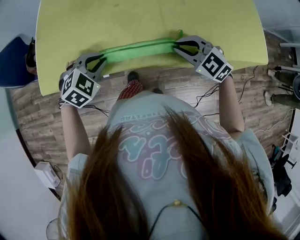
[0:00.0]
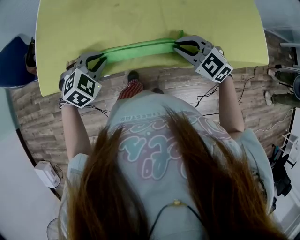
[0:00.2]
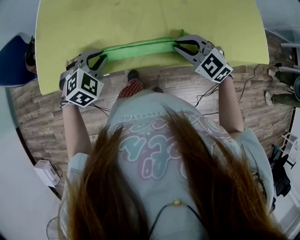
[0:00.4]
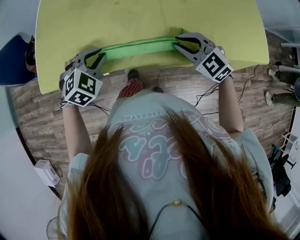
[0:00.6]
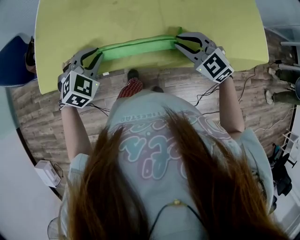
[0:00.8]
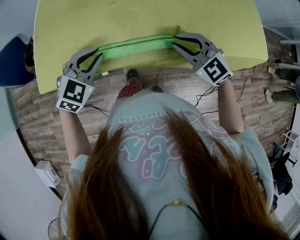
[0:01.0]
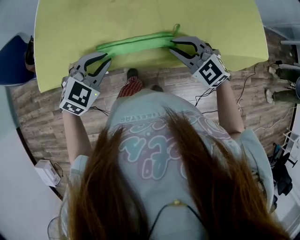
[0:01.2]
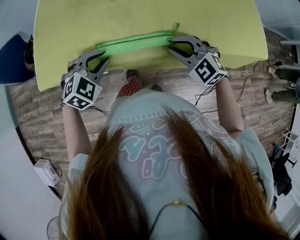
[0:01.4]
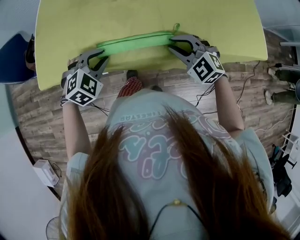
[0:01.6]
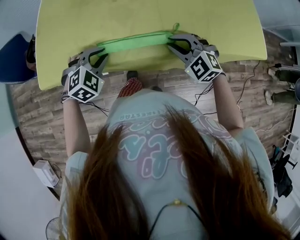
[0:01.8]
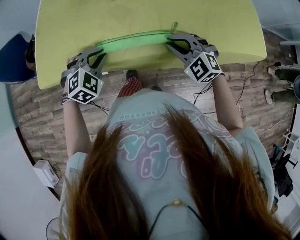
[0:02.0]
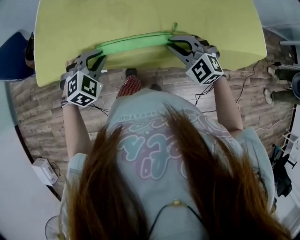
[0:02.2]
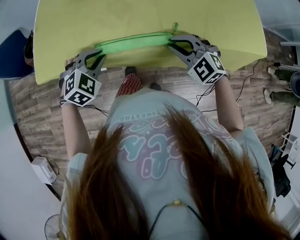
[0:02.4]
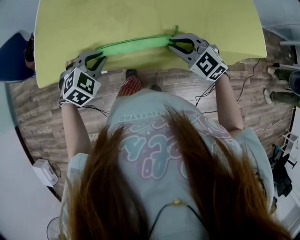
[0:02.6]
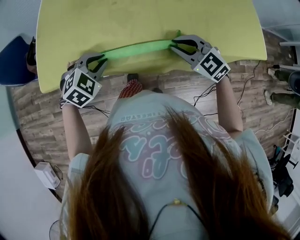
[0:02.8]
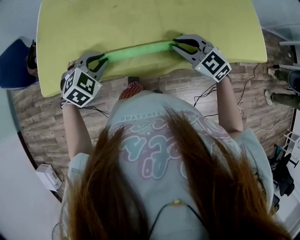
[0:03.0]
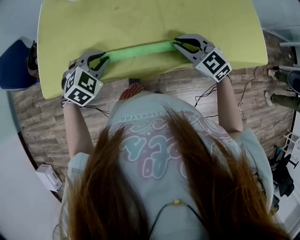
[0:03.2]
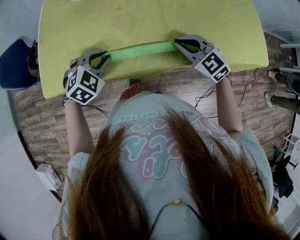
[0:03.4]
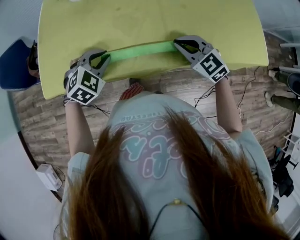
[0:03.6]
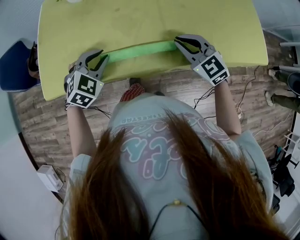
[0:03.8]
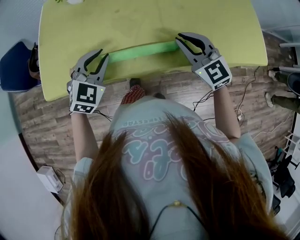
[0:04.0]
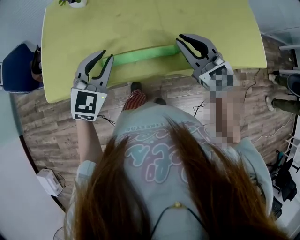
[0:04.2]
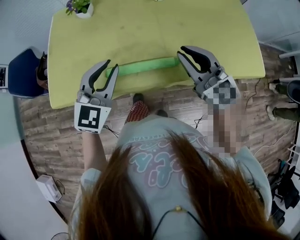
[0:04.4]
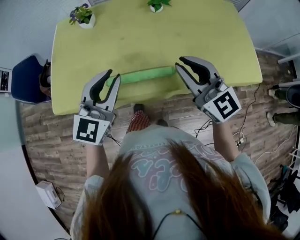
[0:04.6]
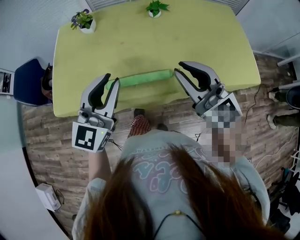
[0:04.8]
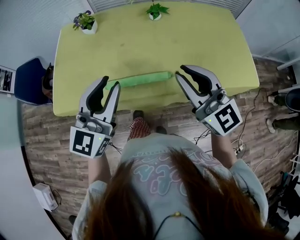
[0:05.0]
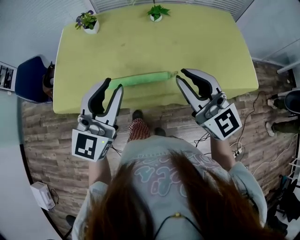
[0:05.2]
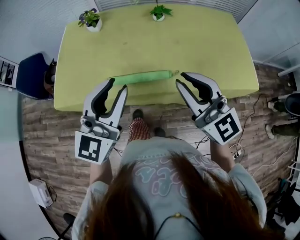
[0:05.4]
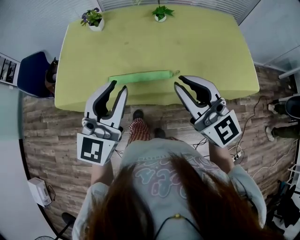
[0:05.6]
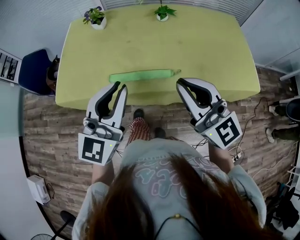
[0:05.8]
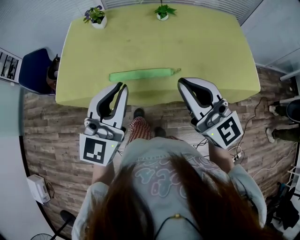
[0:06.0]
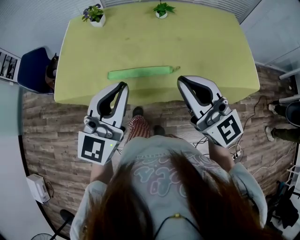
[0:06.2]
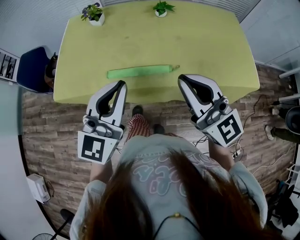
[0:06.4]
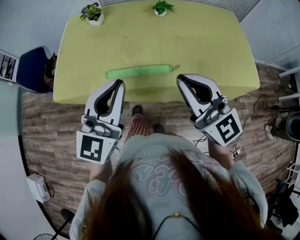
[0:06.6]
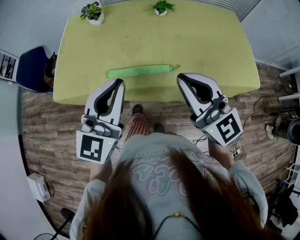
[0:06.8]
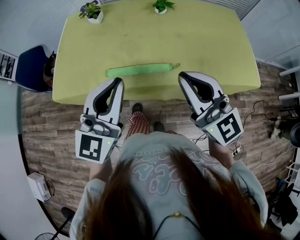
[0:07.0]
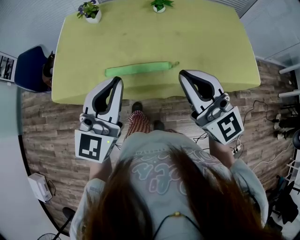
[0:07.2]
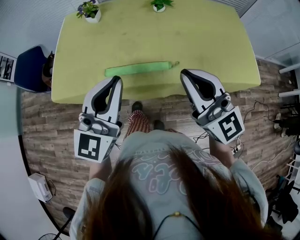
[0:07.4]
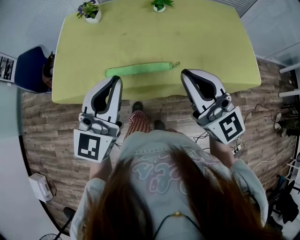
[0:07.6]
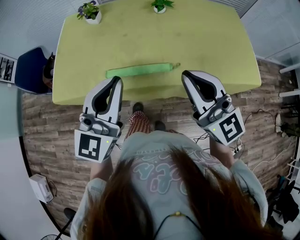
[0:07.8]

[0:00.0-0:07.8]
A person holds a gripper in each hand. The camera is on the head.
0:00.0 to 0:03.2: The grippers move only a little.
0:03.2 to 0:04.6: Both grippers travel together upward, approximately 20 cm. The right gripper changes its angle by some 30 degrees. Meanwhile the left gripper tilts its fingers some 50 degrees upward.
0:04.6 to 0:06.2: Both grippers move backward and upward, roughly 10 cm.
0:06.2 to 0:07.8: The grippers move only a little.

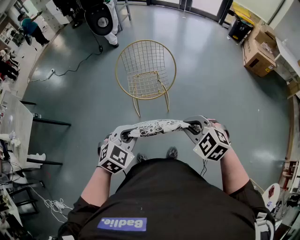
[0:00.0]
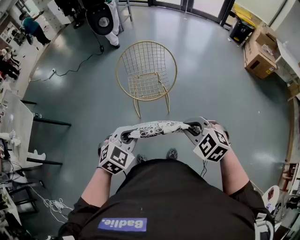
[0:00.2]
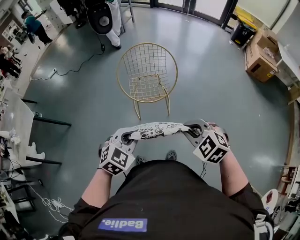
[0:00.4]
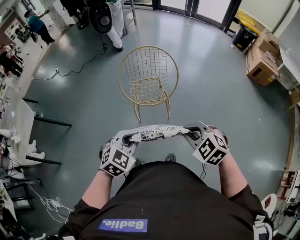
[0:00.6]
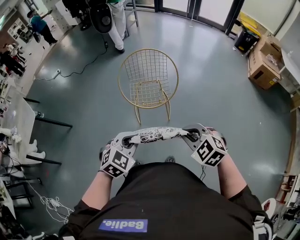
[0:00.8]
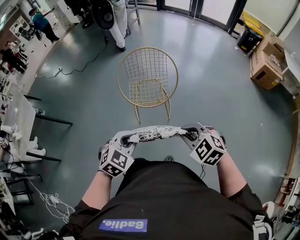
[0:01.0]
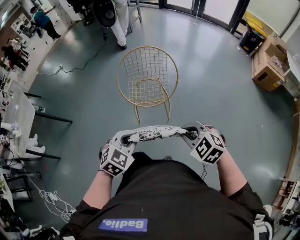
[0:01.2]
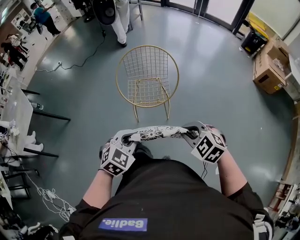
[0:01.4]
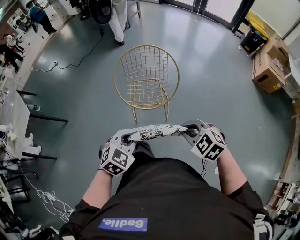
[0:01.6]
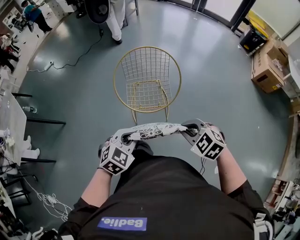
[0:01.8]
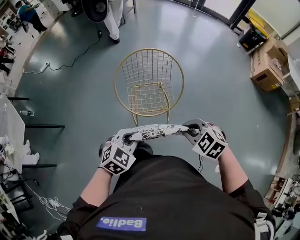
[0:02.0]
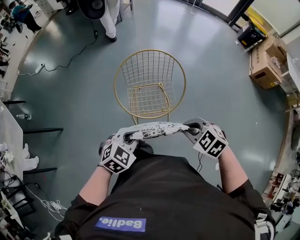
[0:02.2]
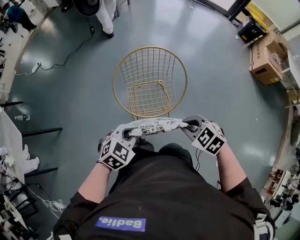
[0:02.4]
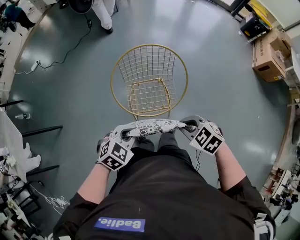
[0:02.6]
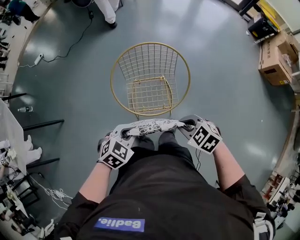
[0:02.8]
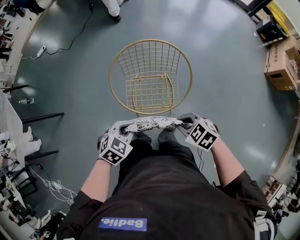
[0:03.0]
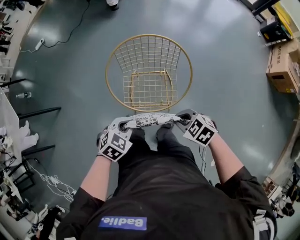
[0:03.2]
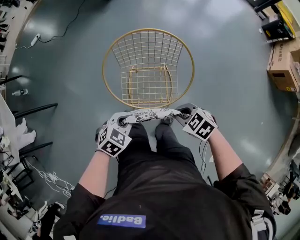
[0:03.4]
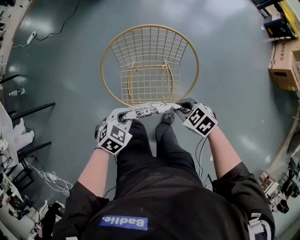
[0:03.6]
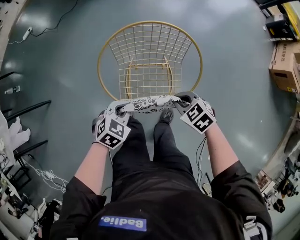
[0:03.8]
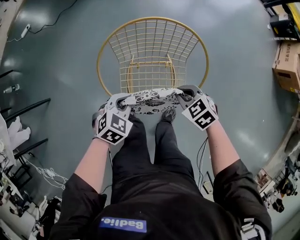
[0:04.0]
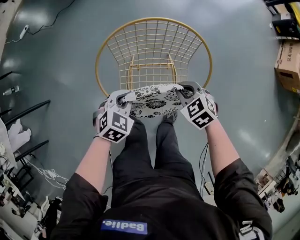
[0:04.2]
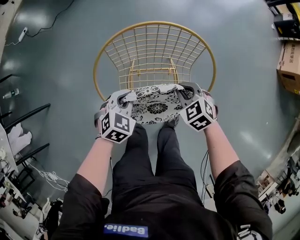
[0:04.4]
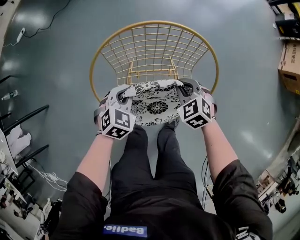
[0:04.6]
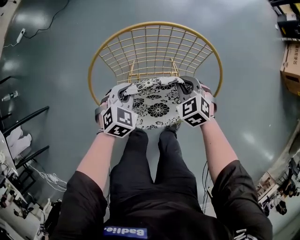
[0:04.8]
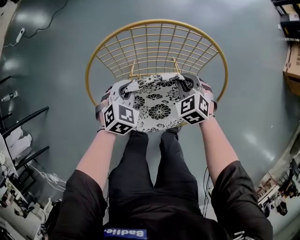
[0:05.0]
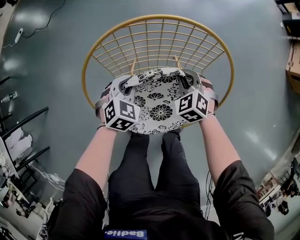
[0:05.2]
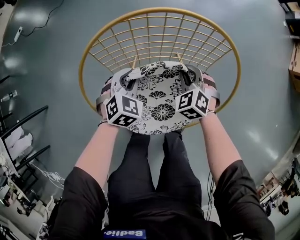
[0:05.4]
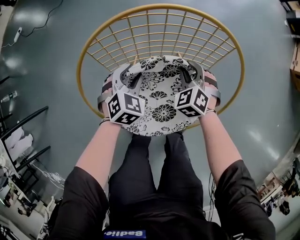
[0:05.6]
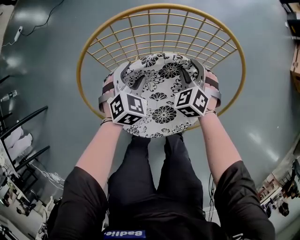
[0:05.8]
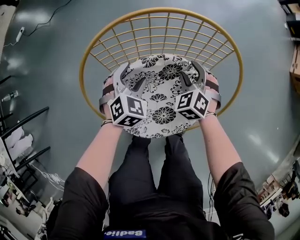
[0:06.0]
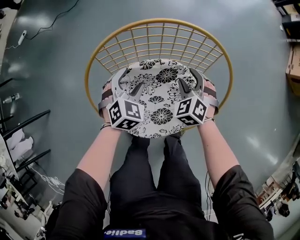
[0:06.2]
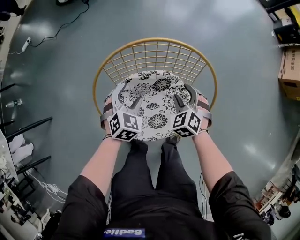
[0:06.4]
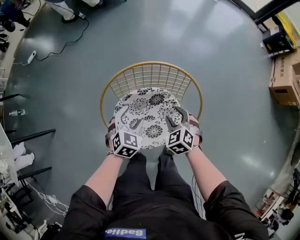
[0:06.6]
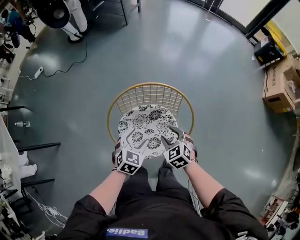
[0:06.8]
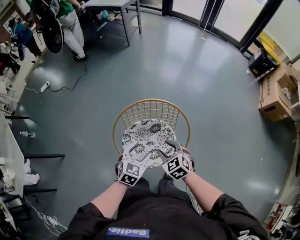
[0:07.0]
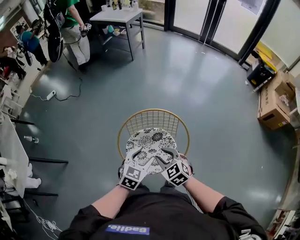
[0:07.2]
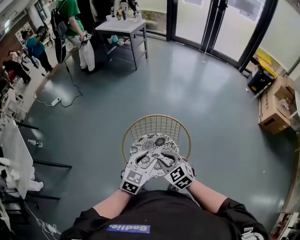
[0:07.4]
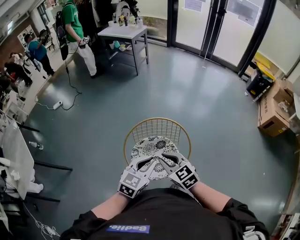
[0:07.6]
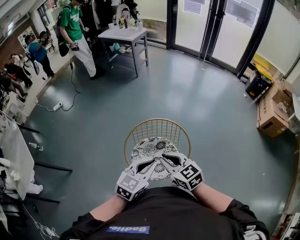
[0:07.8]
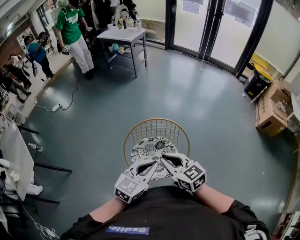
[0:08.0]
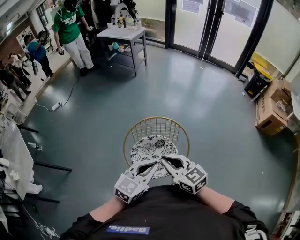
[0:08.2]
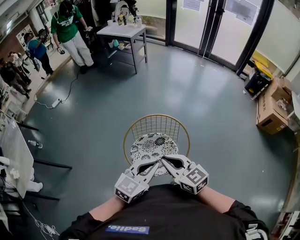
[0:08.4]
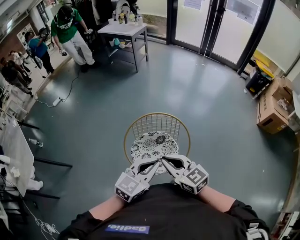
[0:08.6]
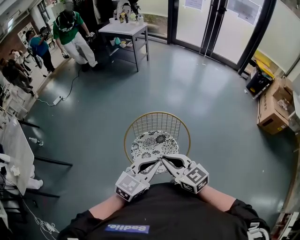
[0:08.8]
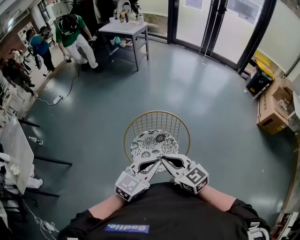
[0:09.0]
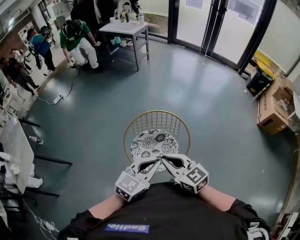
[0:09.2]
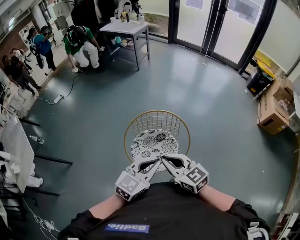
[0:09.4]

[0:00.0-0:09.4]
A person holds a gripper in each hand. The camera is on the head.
0:00.0 to 0:01.6: The right gripper travels forward, downward and to the right by about 15 cm, while the left gripper shifts some 10 cm forward and to the right.
0:01.6 to 0:03.2: The right gripper shifts by roughly 30 cm, and turns by approximately 20 degrees. Meanwhile the left gripper moves approximately 25 cm.
0:03.2 to 0:04.8: The right gripper shifts by roughly 35 cm, and changes its angle by some 30 degrees. The left gripper changes place by approximately 30 cm.
0:04.8 to 0:06.2: The left gripper is displaced forward by about 5 cm, and opens its fingers, while the right gripper heads downward, covering about 5 cm, and opens.
0:06.2 to 0:07.8: Both grippers travel together upward and backward, about 50 cm. The left gripper turns by about 40 degrees, and closes; the right gripper swivels some 50 degrees, and closes.
0:07.8 to 0:09.4: The left gripper shifts by about 5 cm. The right gripper travels backward by about 5 cm.

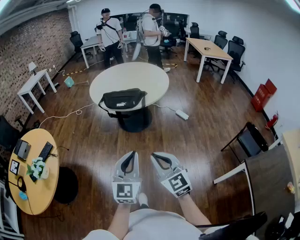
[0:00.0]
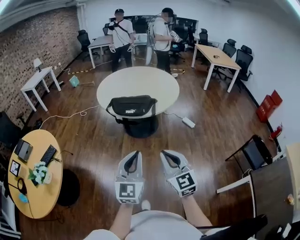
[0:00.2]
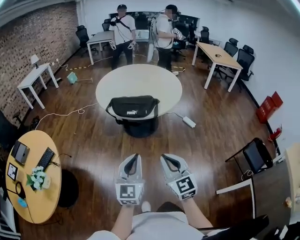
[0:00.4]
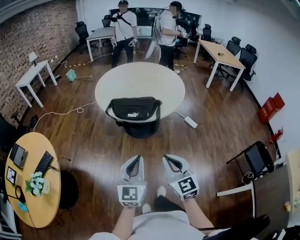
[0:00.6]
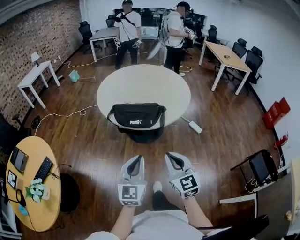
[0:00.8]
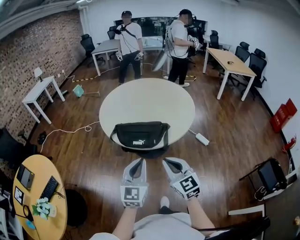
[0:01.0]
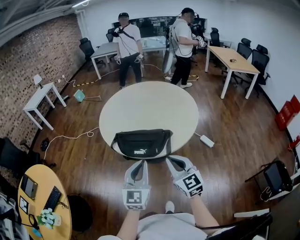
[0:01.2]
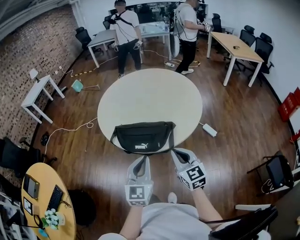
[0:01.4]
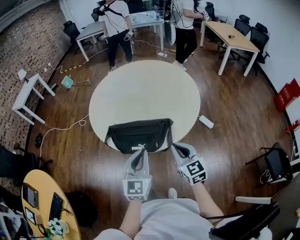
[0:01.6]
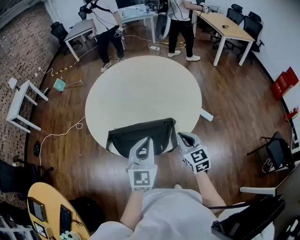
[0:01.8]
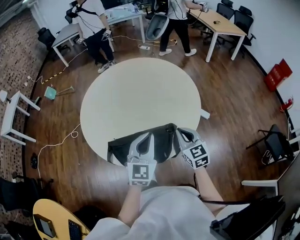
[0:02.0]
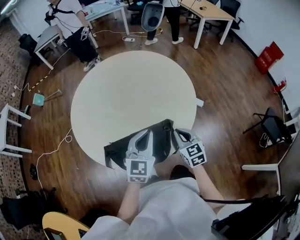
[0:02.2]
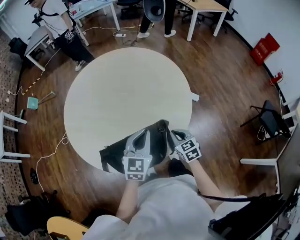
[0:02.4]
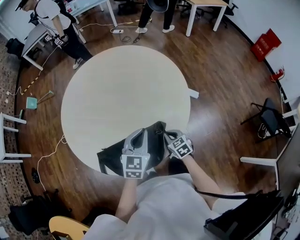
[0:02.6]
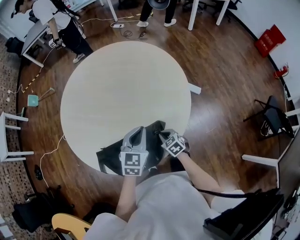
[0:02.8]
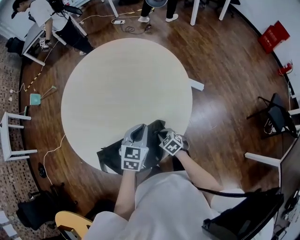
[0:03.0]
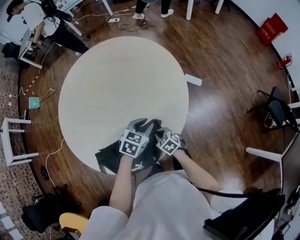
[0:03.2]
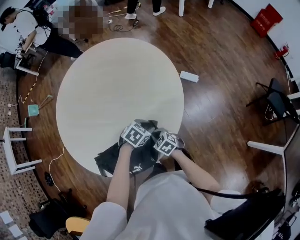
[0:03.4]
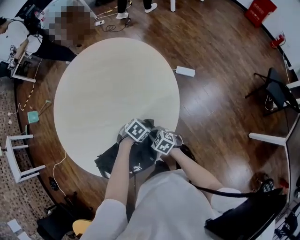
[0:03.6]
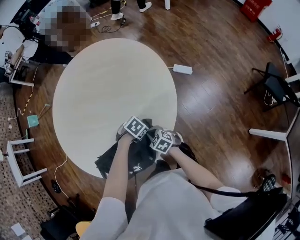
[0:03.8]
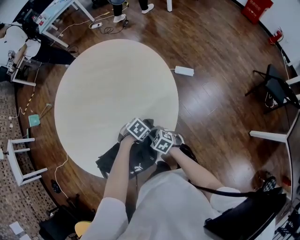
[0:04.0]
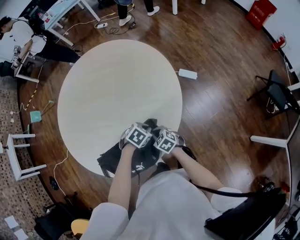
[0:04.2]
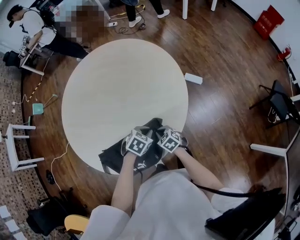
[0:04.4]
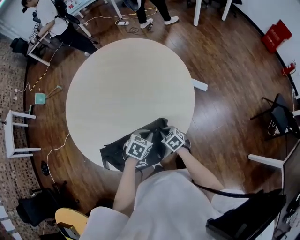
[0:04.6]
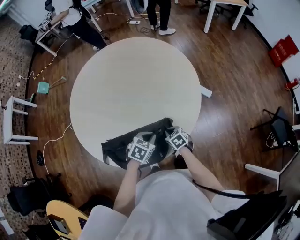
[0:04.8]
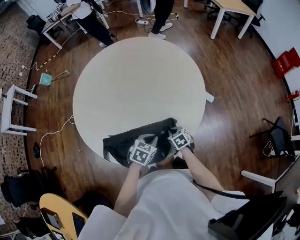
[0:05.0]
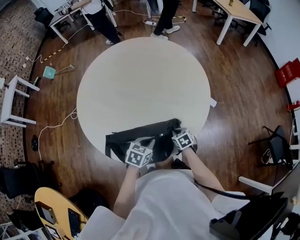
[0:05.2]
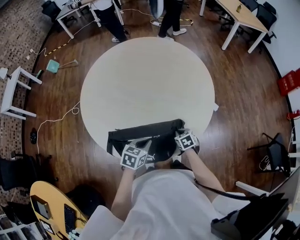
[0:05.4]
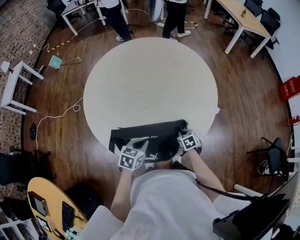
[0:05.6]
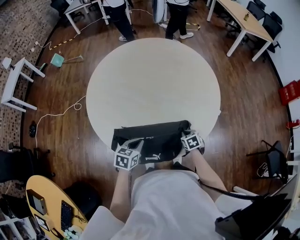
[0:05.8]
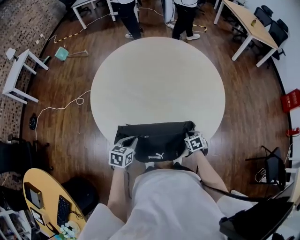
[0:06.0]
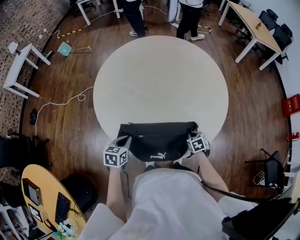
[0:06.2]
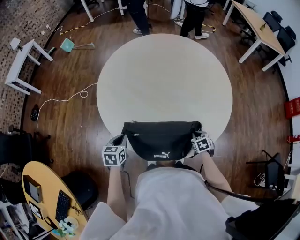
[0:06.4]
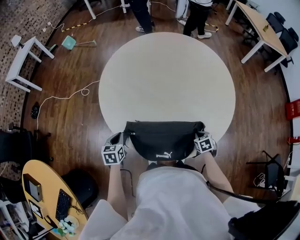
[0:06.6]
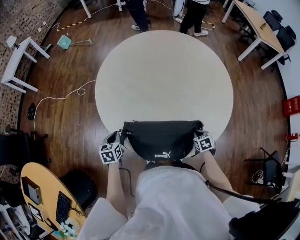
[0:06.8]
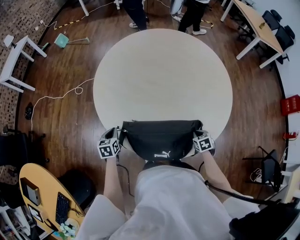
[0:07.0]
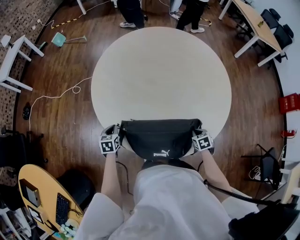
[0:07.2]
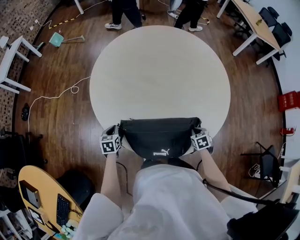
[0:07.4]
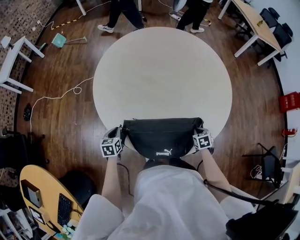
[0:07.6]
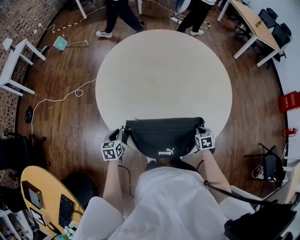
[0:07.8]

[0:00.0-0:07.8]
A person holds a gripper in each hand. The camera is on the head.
0:00.0 to 0:01.6: The two grippers travel together, forward, approximately 60 cm. The right gripper rotates about 20 degrees.
0:01.6 to 0:03.2: The right gripper travels downward and forward by about 35 cm, and points its fingers about 30 degrees further downward; the left gripper moves forward and downward, roughly 35 cm, tilts its fingers approximately 40 degrees downward, and opens up.
0:03.2 to 0:04.6: The left gripper reaches approximately 15 cm downward, then returns, and closes its fingers.
0:04.6 to 0:06.2: The left gripper goes approximately 30 cm to the left, and rotates about 50 degrees.
0:06.2 to 0:07.8: The left gripper heads to the left and downward, covering about 15 cm.
